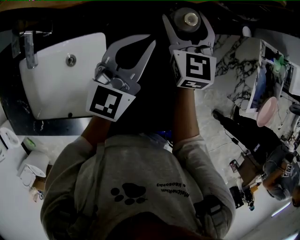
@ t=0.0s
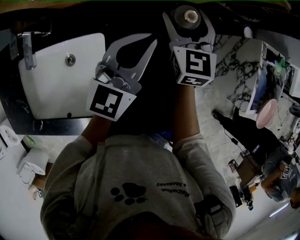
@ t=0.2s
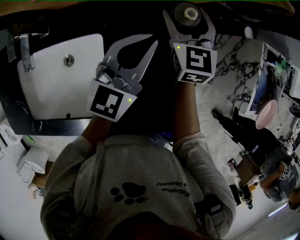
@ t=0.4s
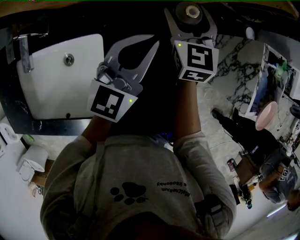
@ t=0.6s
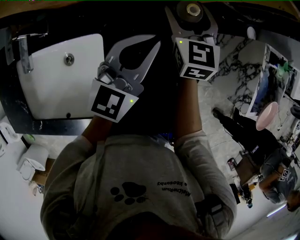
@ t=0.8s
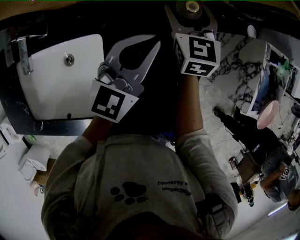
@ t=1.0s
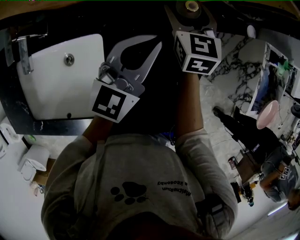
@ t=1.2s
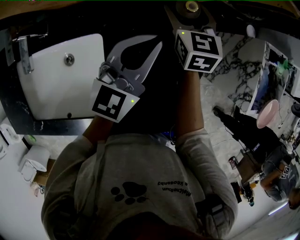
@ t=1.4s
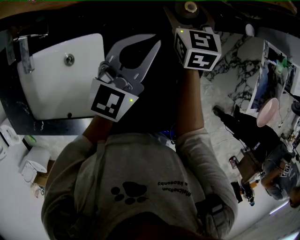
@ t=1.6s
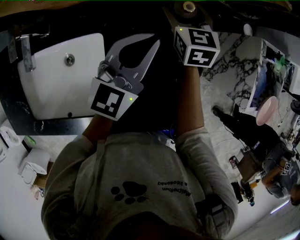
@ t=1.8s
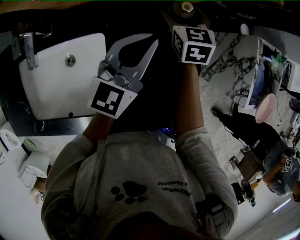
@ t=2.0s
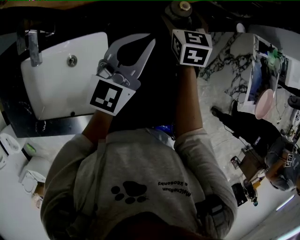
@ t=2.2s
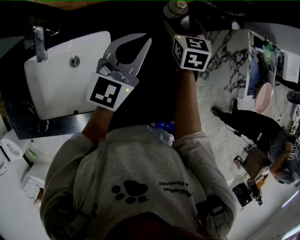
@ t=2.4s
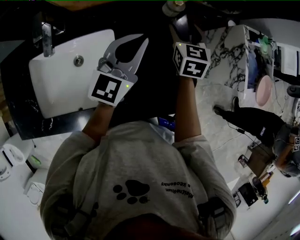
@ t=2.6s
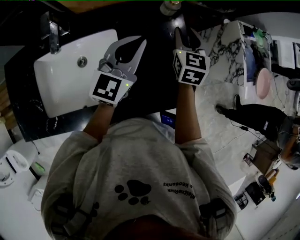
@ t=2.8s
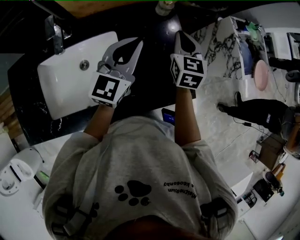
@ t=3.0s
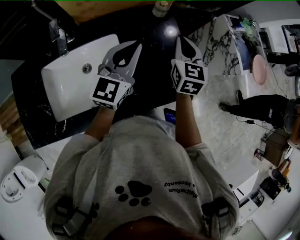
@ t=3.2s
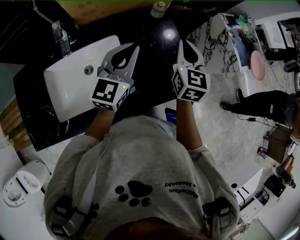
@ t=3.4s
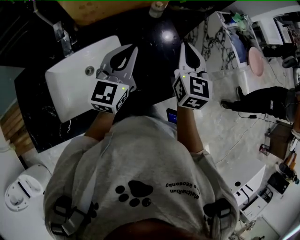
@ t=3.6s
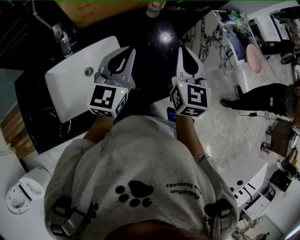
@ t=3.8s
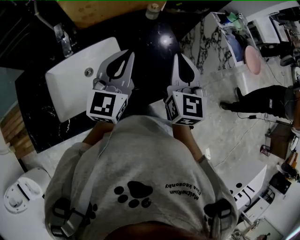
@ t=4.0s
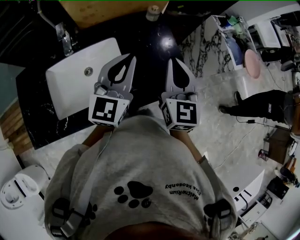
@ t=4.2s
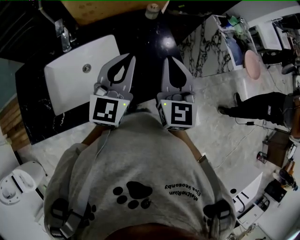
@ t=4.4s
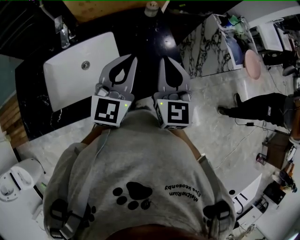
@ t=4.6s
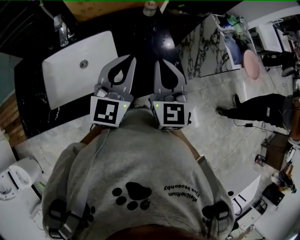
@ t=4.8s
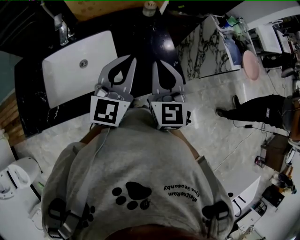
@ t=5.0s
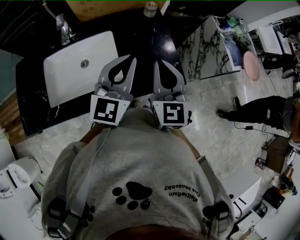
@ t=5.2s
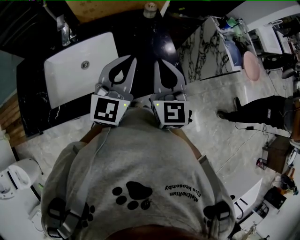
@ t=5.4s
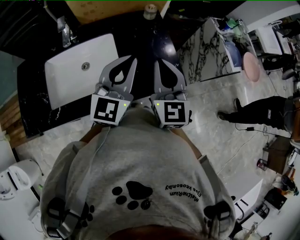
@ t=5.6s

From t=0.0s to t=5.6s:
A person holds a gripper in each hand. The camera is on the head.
From t=0.0s to t=1.4s: The right gripper is displaced downward by some 5 cm.
From t=1.4s to t=2.8s: The right gripper is displaced backward, upward and to the right by roughly 15 cm, and closes up. The left gripper is displaced backward and upward by some 10 cm.
From t=2.8s to t=4.2s: The left gripper shifts about 15 cm backward and upward; the right gripper heads backward and upward, covering roughly 25 cm, and swivels some 20 degrees.
From t=4.2s to t=5.6s: The left gripper ends up approximately 5 cm from where it was.

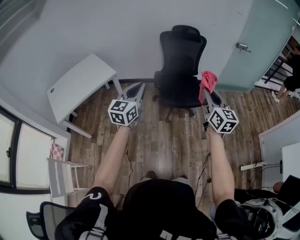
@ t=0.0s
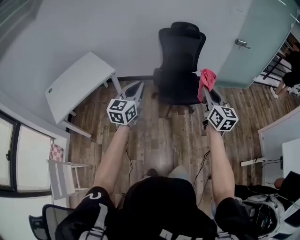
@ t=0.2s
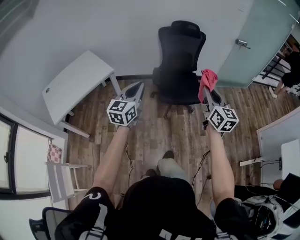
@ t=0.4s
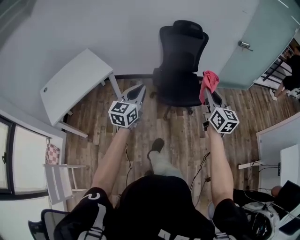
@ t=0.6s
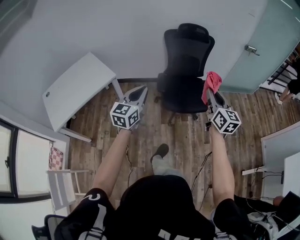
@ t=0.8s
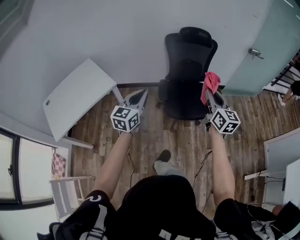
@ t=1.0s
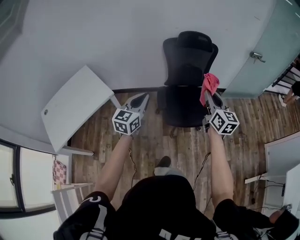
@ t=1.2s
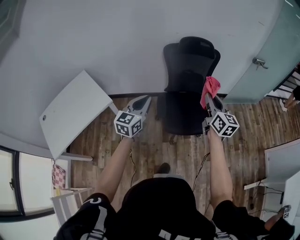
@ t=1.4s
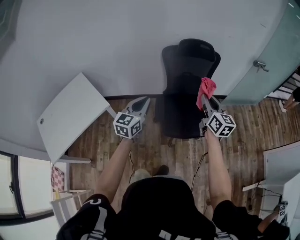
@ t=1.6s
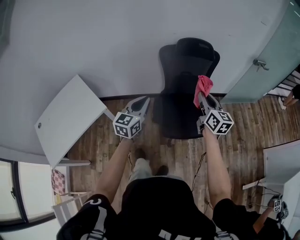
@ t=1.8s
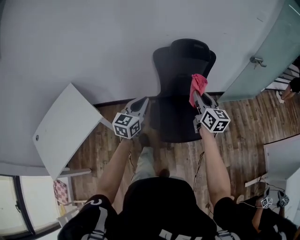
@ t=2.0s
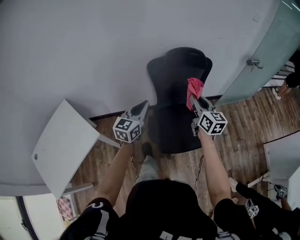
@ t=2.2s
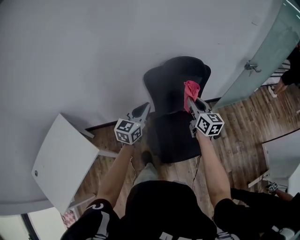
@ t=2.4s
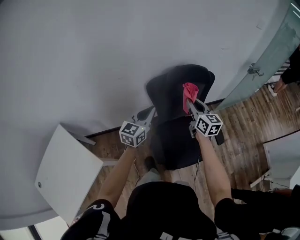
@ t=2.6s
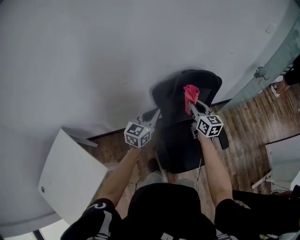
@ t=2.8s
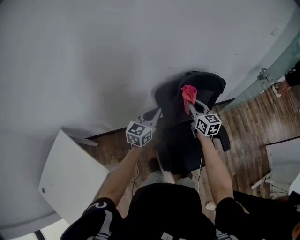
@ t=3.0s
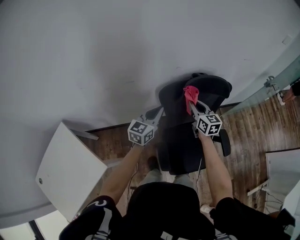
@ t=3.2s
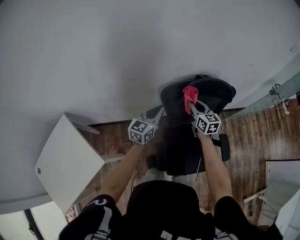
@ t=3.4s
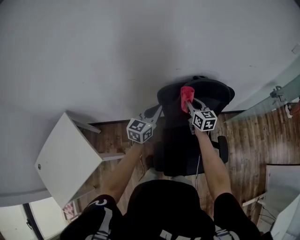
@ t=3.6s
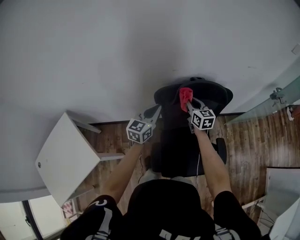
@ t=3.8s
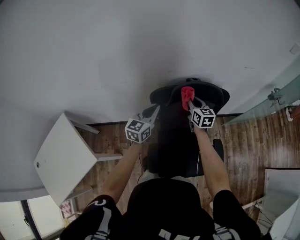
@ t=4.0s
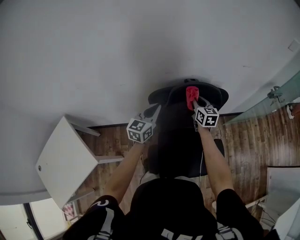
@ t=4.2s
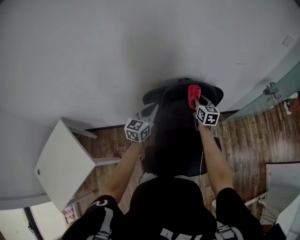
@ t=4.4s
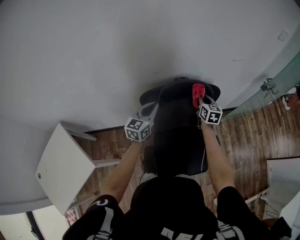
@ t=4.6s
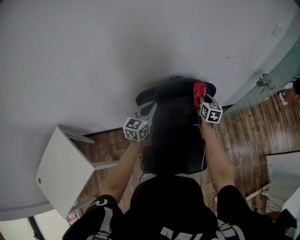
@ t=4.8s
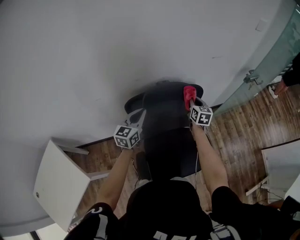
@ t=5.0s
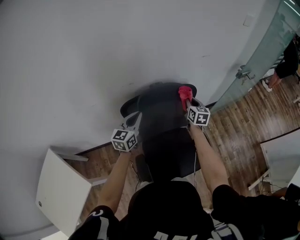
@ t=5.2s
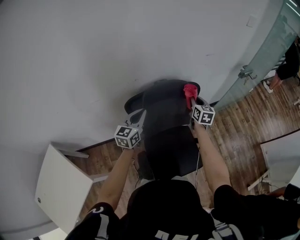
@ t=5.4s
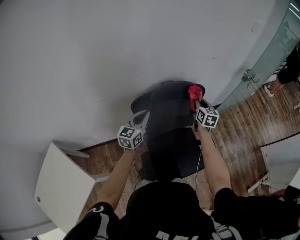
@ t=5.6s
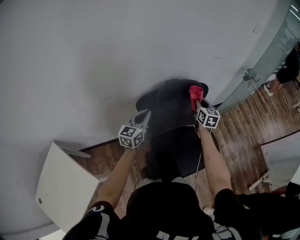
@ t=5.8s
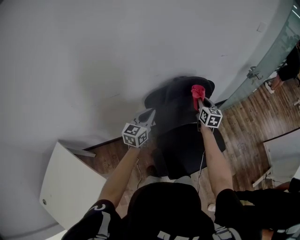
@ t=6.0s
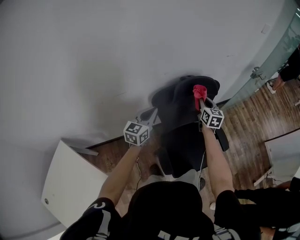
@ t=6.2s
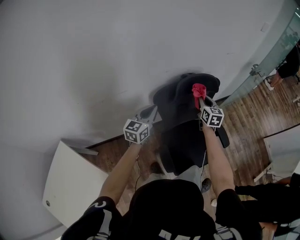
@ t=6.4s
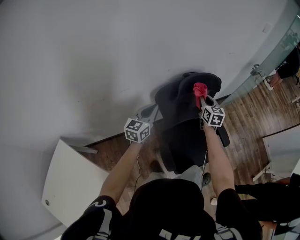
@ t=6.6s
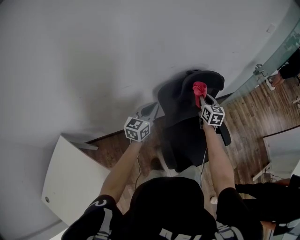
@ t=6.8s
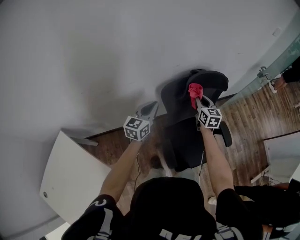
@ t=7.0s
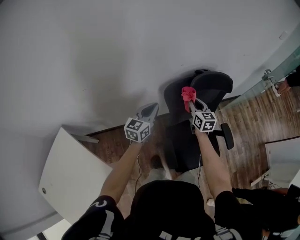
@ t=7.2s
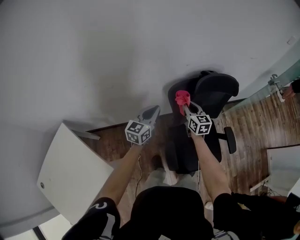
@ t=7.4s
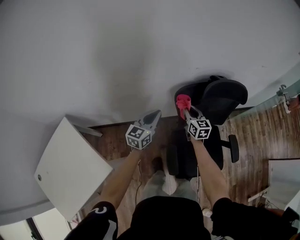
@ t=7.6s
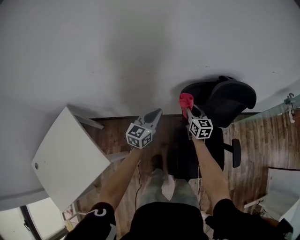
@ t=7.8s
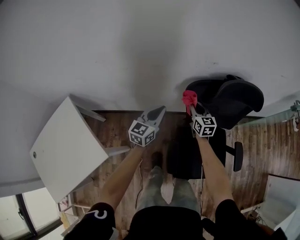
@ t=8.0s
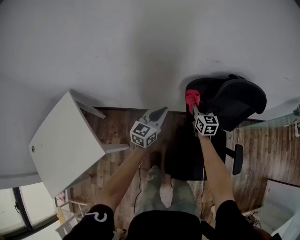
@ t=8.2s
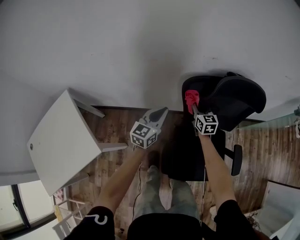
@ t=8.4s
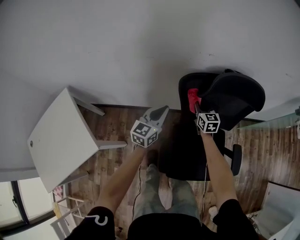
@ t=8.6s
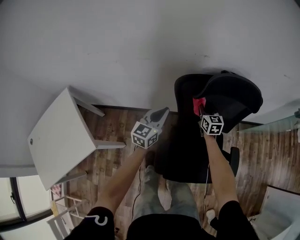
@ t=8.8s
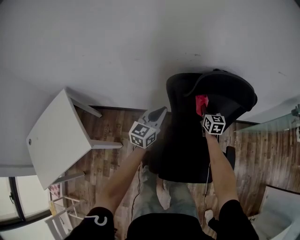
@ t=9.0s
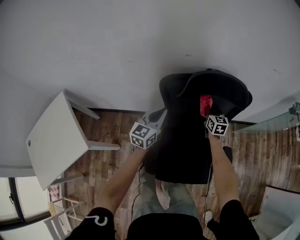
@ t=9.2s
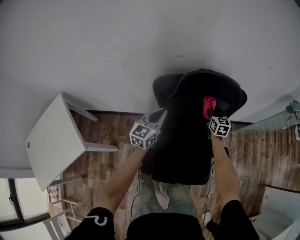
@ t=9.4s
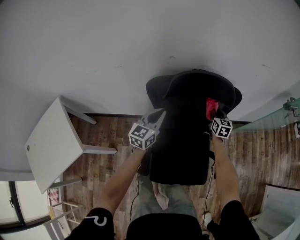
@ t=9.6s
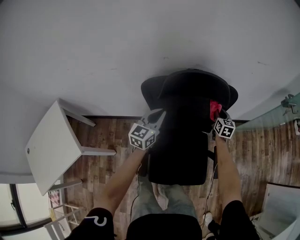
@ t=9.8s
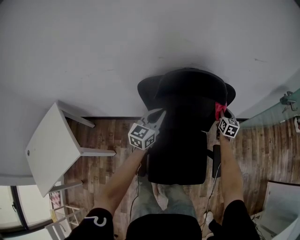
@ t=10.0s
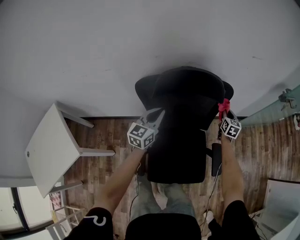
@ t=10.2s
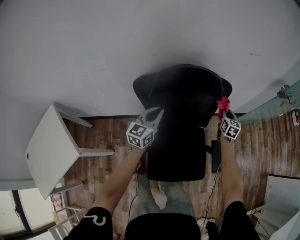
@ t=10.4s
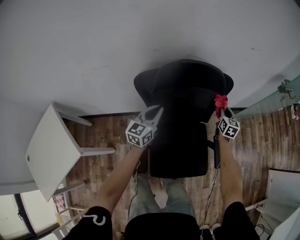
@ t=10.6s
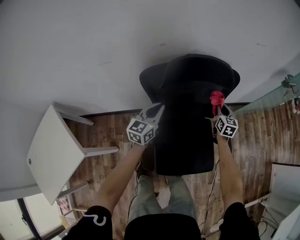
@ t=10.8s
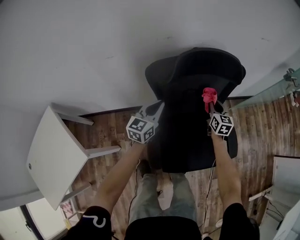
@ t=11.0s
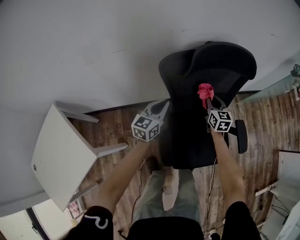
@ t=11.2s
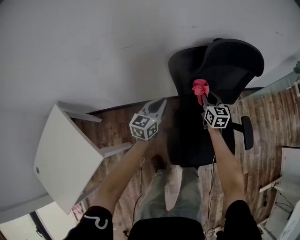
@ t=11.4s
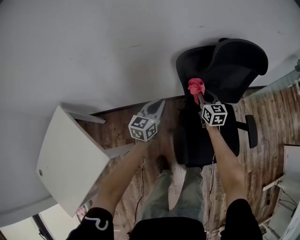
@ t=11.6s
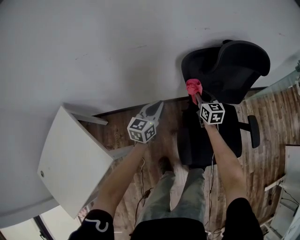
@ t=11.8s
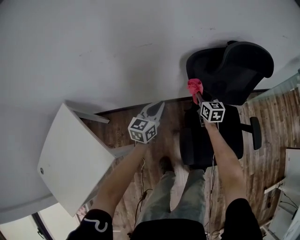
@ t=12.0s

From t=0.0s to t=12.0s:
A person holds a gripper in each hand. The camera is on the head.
From t=0.0s to t=1.6s: The two grippers go approximately 40 cm forward.
From t=1.6s to t=3.0s: The two grippers travel together, forward, about 40 cm.
From t=3.0s to t=4.4s: The right gripper travels to the right and forward by some 20 cm. The left gripper shifts approximately 10 cm to the right and forward.
From t=4.4s to t=6.0s: Both grippers travel together backward, approximately 5 cm. The right gripper travels to the right and back again, some 10 cm each way.
From t=6.0s to t=7.6s: The right gripper goes some 25 cm to the left and downward, and swivels approximately 20 degrees. Meanwhile the left gripper moves to the left and downward, about 15 cm.
From t=7.6s to t=9.0s: Both grippers travel together to the right and downward, some 15 cm.
From t=9.0s to t=10.4s: The left gripper travels to the right by roughly 15 cm. Meanwhile the right gripper is displaced to the right by some 30 cm, and rotates some 20 degrees.
From t=10.4s to t=12.0s: The right gripper is displaced to the left by roughly 40 cm. Meanwhile the left gripper shifts approximately 25 cm to the left.

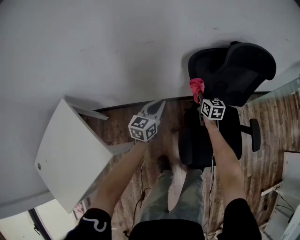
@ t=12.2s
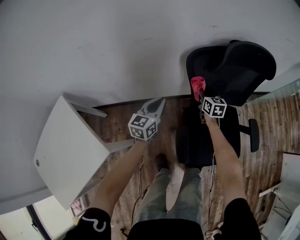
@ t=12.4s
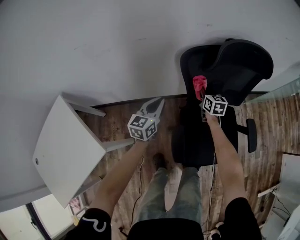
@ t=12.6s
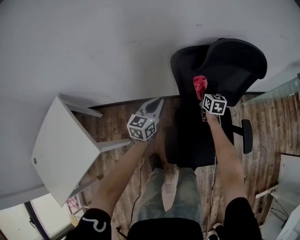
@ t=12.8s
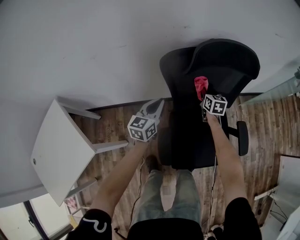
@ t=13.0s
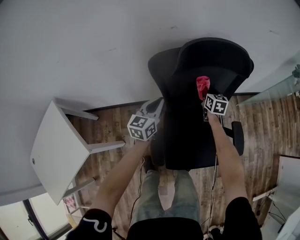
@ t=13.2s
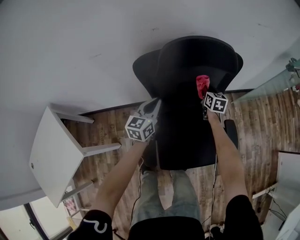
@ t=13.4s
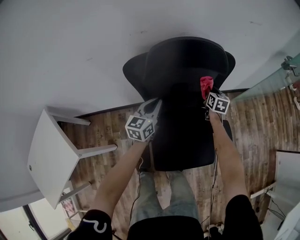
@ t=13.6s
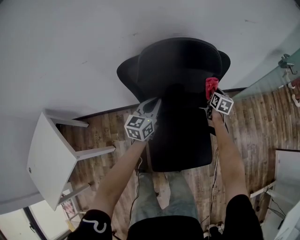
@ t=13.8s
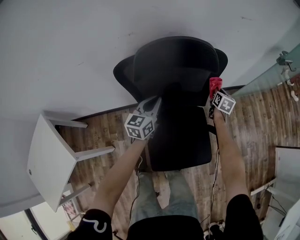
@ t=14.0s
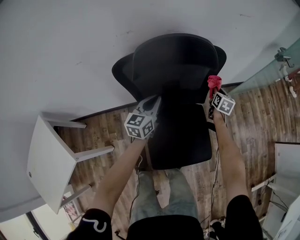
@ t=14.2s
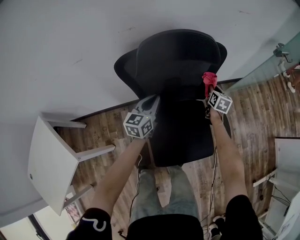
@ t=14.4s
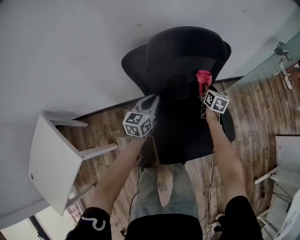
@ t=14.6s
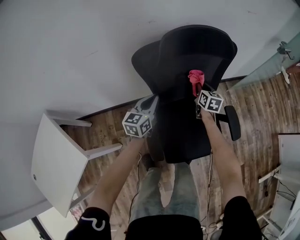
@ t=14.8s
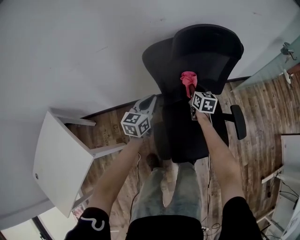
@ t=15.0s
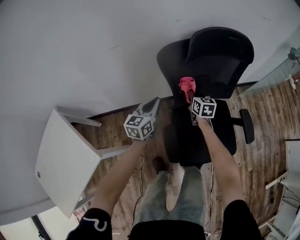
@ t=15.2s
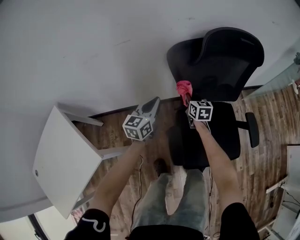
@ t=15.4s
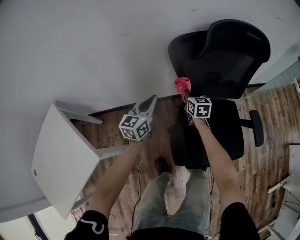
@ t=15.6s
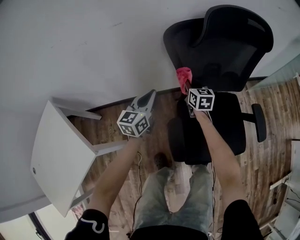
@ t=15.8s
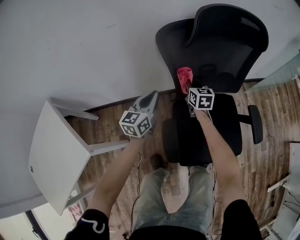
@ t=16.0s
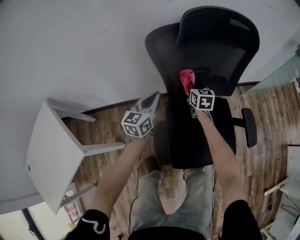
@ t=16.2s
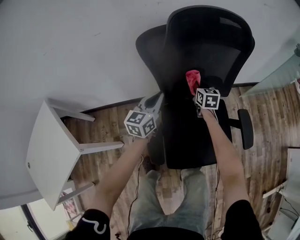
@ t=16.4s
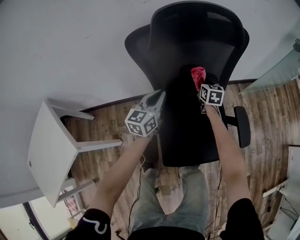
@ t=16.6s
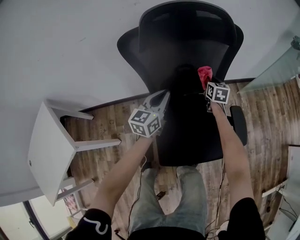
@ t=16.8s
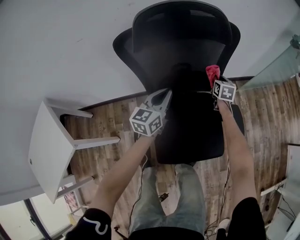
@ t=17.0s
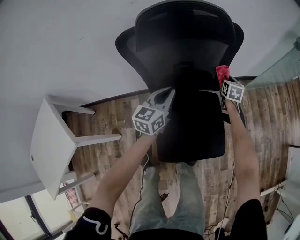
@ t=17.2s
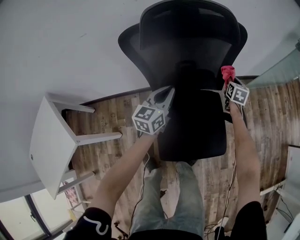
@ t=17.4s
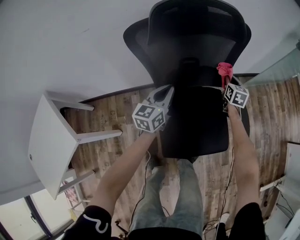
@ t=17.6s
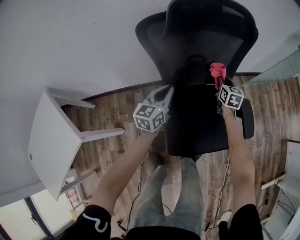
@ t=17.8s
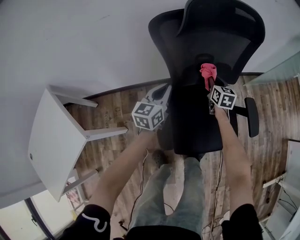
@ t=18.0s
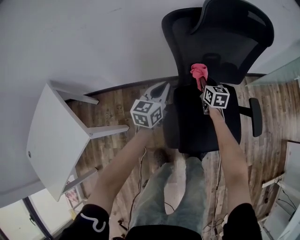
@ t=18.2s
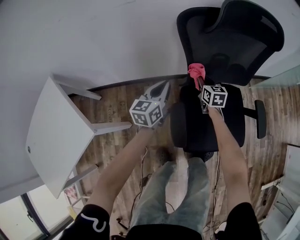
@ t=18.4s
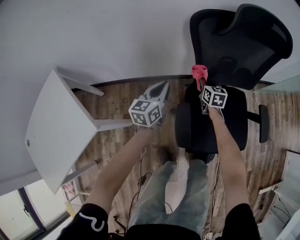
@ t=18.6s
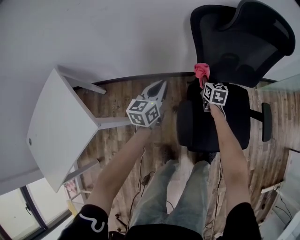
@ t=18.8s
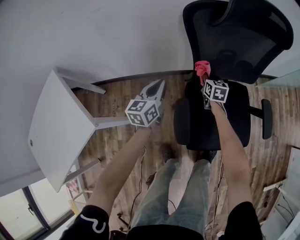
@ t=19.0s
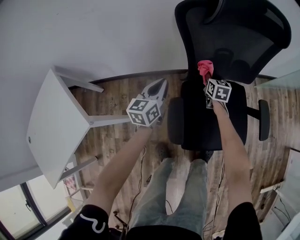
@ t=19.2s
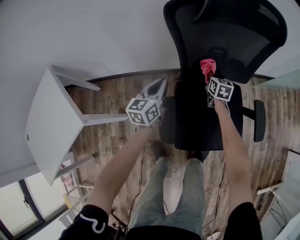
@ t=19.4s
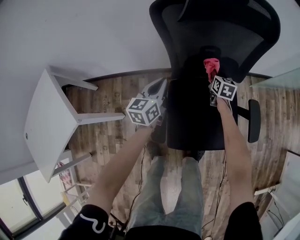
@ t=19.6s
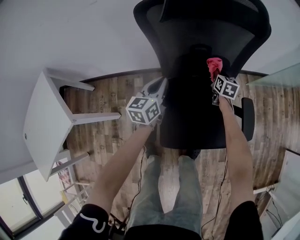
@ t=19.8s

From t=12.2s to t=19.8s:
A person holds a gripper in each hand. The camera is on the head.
From t=12.2s to t=13.8s: The two grippers go approximately 35 cm to the right. The right gripper rotates some 20 degrees.
From t=13.8s to t=15.2s: The right gripper shifts some 35 cm to the left and backward. Meanwhile the left gripper heads to the left and backward, covering about 20 cm.
From t=15.2s to t=16.8s: Both grippers travel together to the right, approximately 20 cm.
From t=16.8s to t=18.2s: The grippers both shift to the left and backward by some 20 cm.
From t=18.2s to t=19.8s: The right gripper shifts some 15 cm to the right, while the left gripper travels to the right by some 10 cm.
